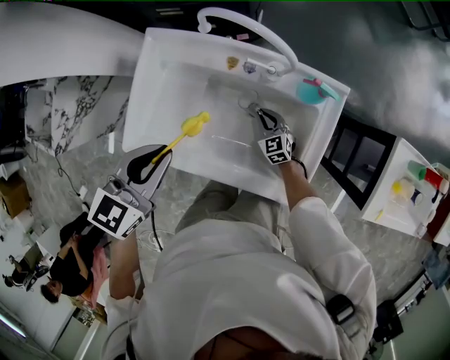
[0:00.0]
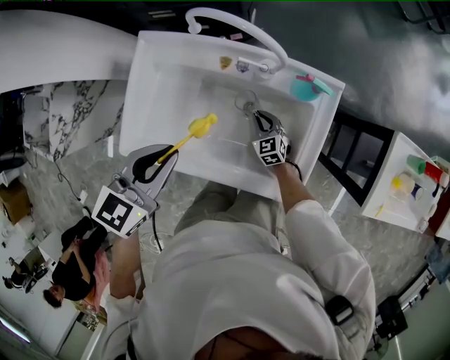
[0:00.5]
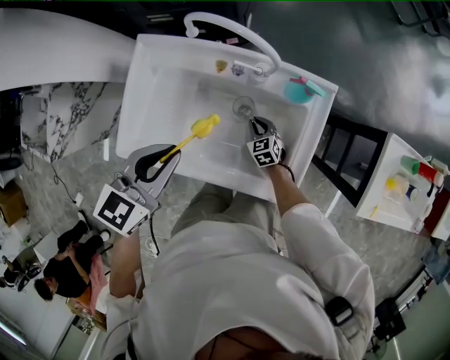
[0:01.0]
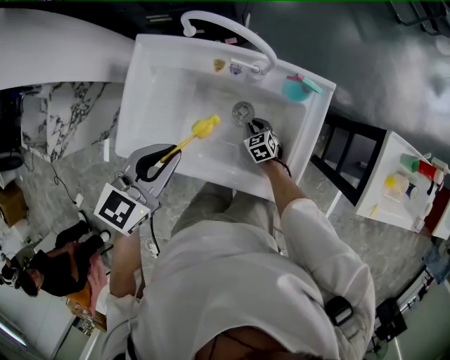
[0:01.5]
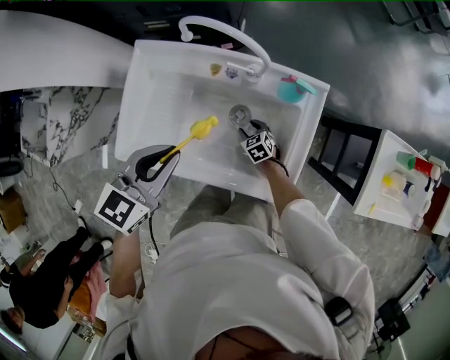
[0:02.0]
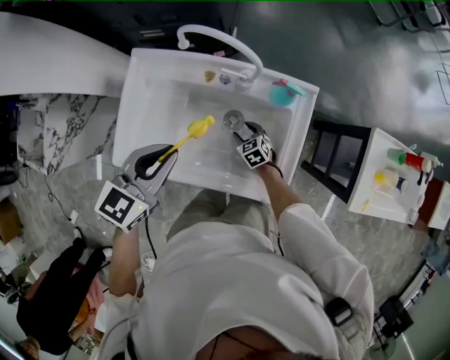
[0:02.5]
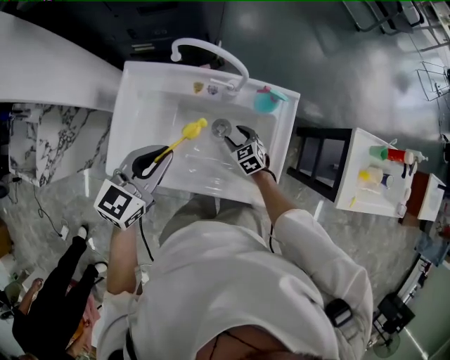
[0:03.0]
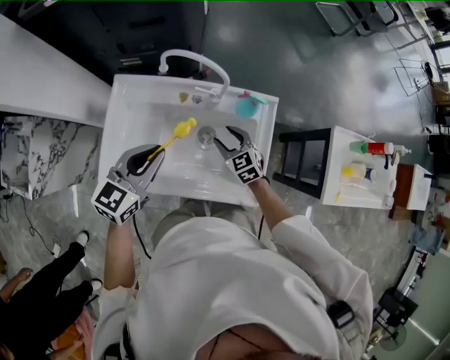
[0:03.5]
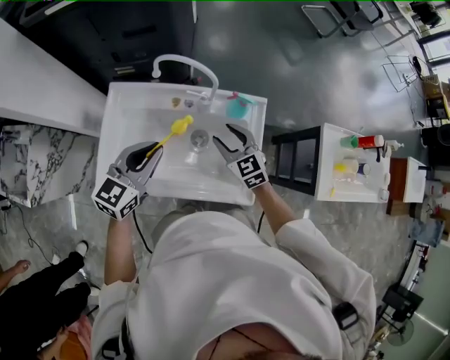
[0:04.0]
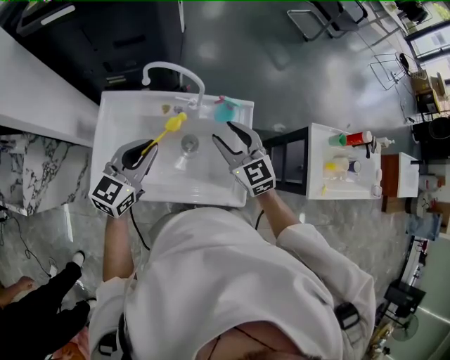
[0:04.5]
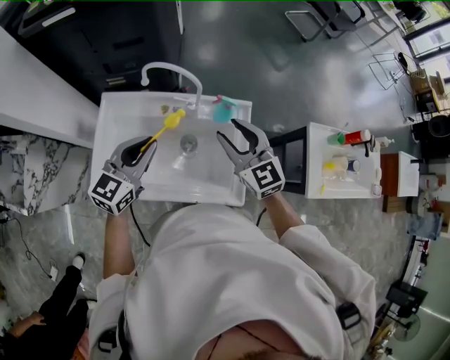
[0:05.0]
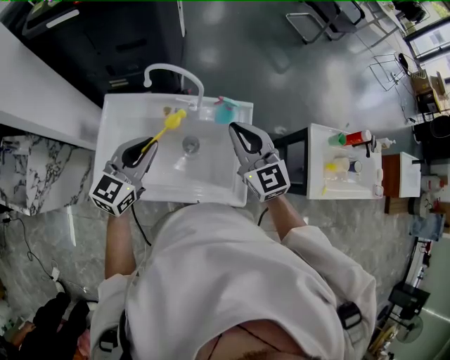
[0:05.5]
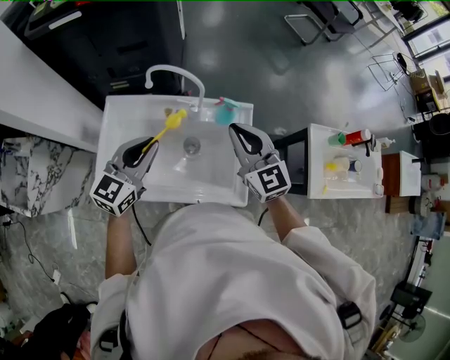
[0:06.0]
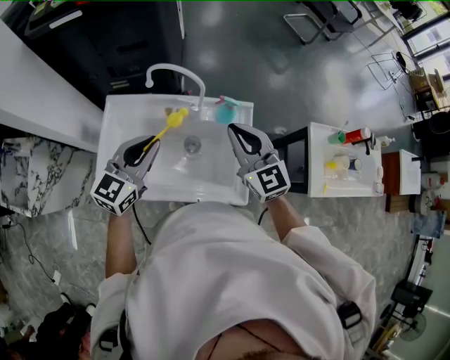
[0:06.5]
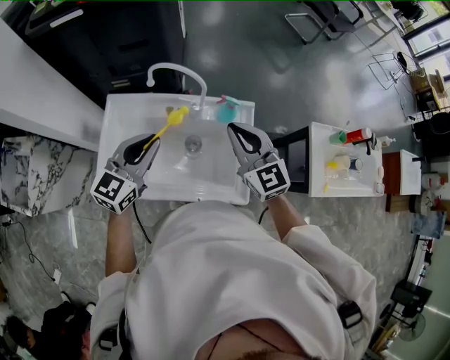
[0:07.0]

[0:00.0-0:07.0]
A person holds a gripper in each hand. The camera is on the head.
0:00.0 to 0:02.0: The right gripper ends up approximately 5 cm from where it was, changes its angle by about 20 degrees, and opens.
0:02.0 to 0:03.5: The right gripper travels upward by some 25 cm, and changes its angle by roughly 20 degrees.
0:03.5 to 0:05.0: The left gripper ends up some 5 cm from where it was. Meanwhile the right gripper heads upward, covering roughly 25 cm, and rotates about 20 degrees.
0:05.0 to 0:07.0: The right gripper closes its fingers.

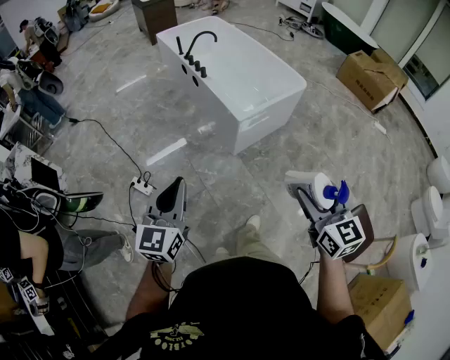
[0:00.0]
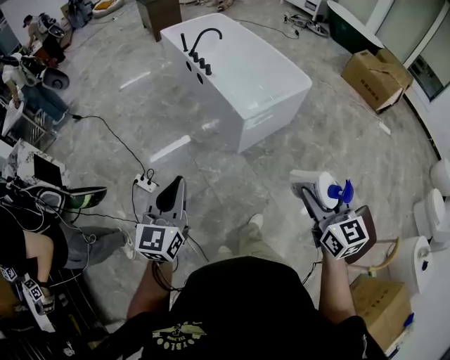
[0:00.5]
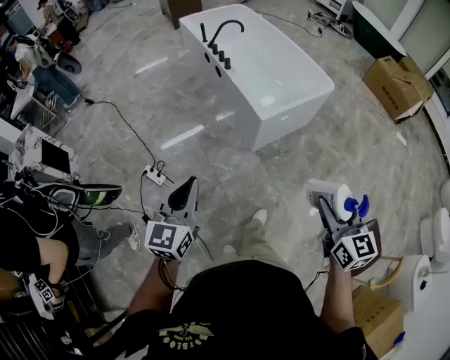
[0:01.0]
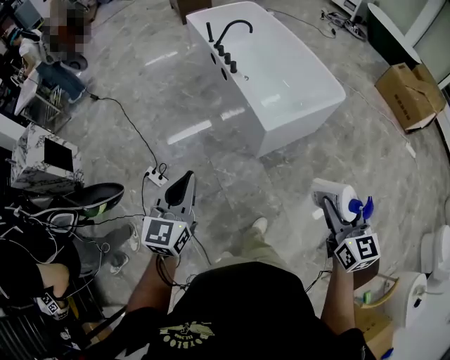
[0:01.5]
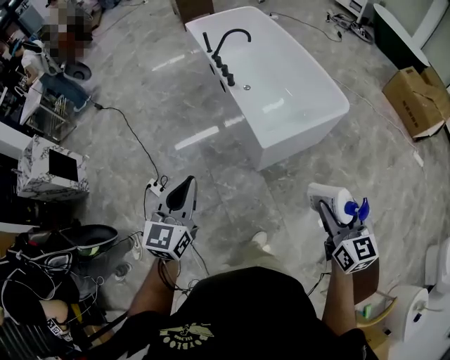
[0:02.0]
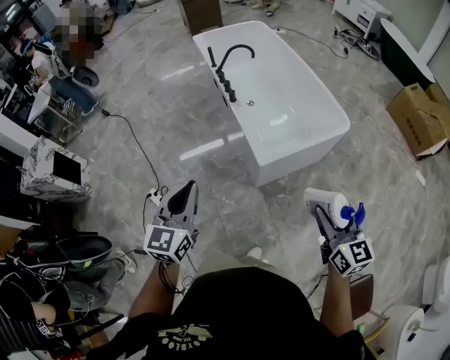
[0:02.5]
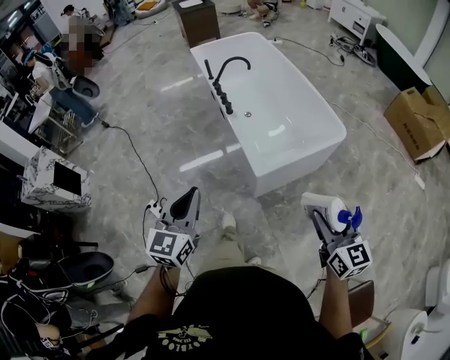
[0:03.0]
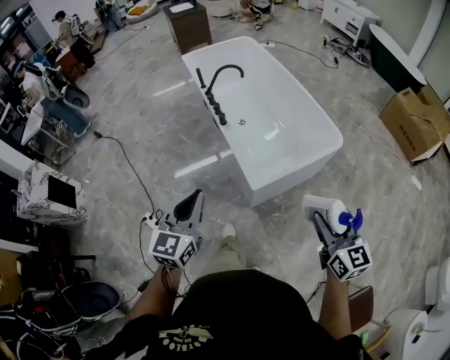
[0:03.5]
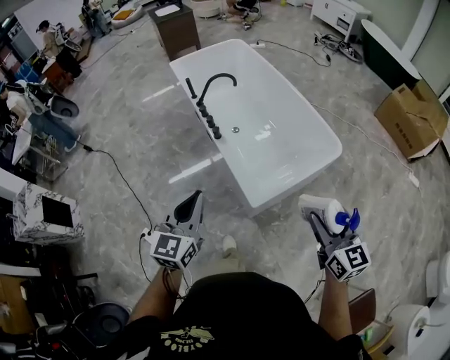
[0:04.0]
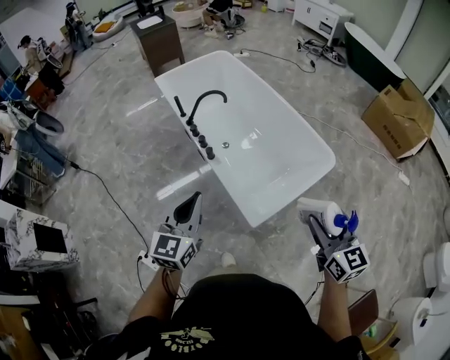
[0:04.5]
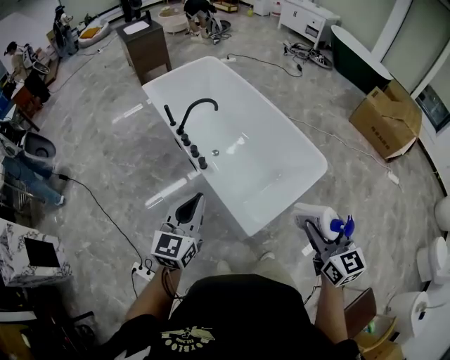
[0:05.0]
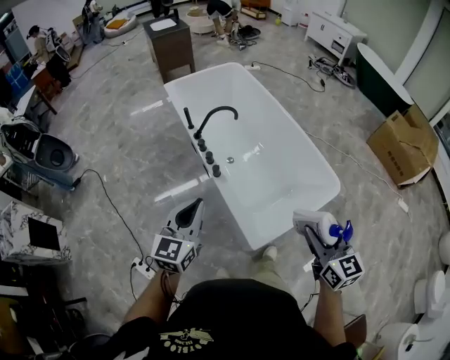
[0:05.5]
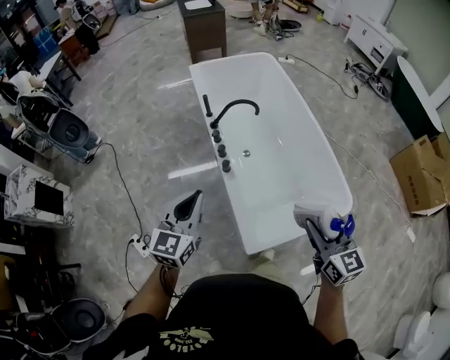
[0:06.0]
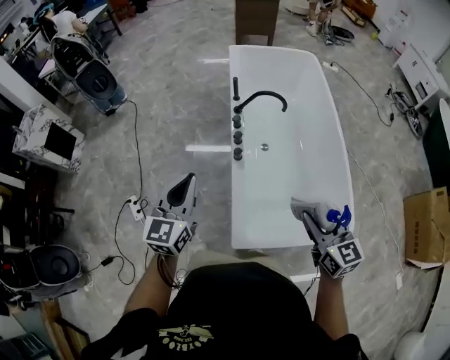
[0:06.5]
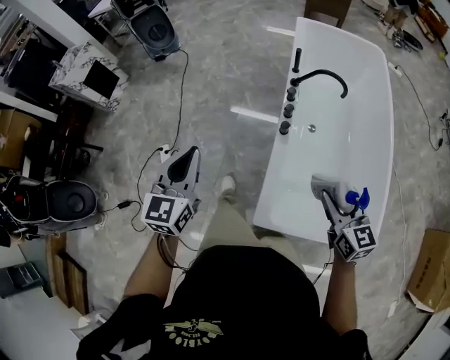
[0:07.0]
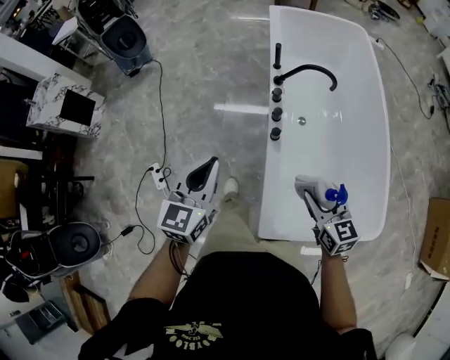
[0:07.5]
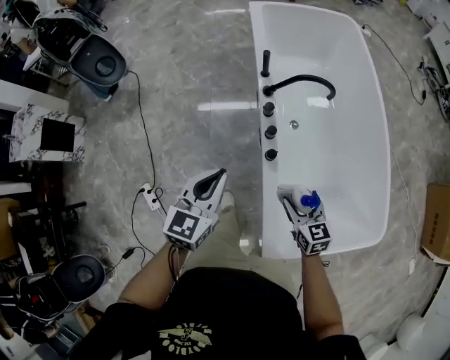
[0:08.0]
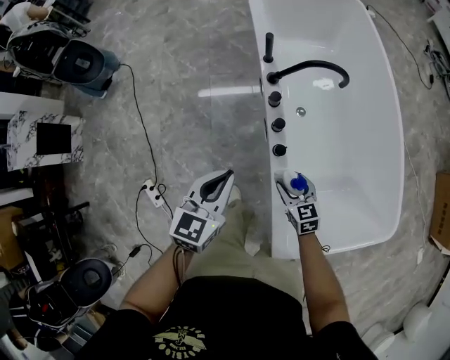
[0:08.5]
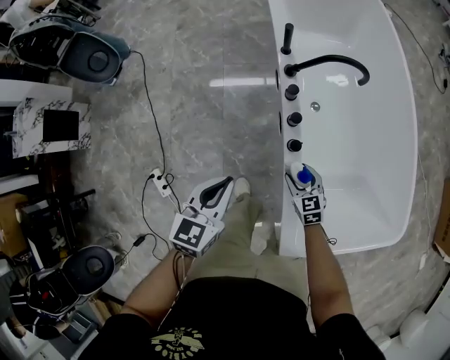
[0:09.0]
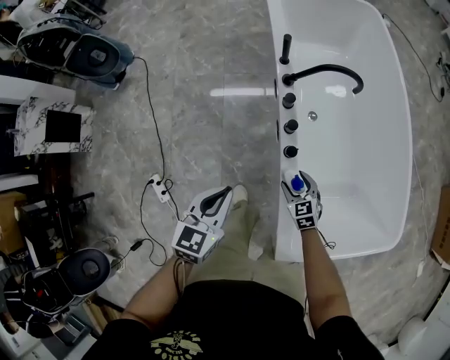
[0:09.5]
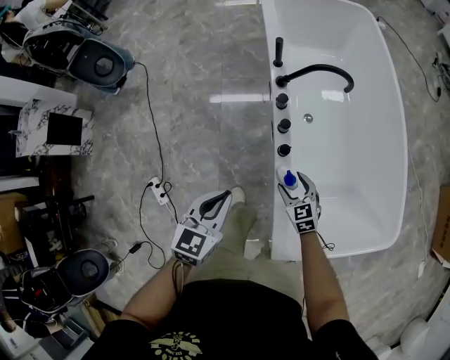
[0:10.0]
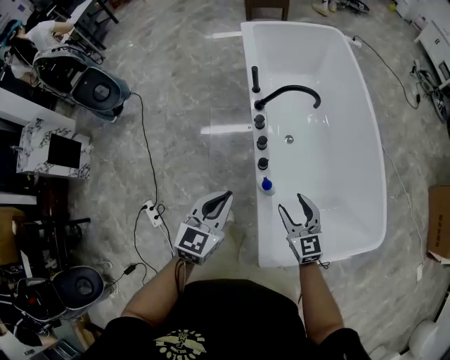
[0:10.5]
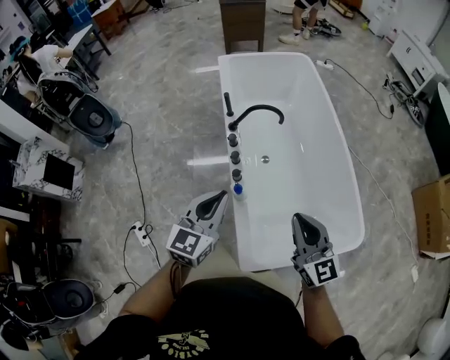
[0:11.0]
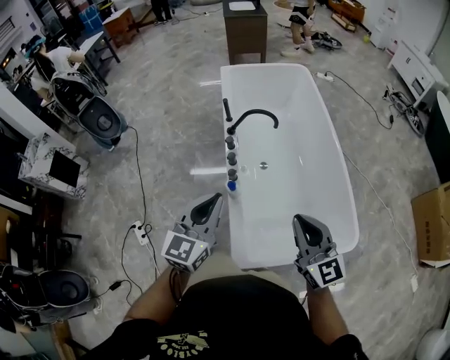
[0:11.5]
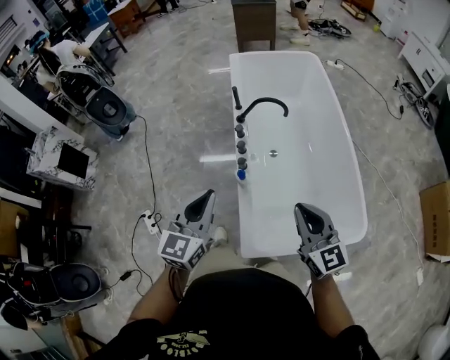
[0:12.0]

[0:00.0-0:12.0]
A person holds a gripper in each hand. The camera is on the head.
0:00.0 to 0:02.0: The two grippers go some 25 cm forward.
0:02.0 to 0:04.0: Both grippers travel together forward, roughly 25 cm.
0:04.0 to 0:06.0: Both grippers move forward, about 25 cm.
0:06.0 to 0:08.0: The right gripper moves downward, about 30 cm, and rotates roughly 30 degrees. Meanwhile the left gripper shifts by approximately 25 cm.
0:08.0 to 0:10.0: The left gripper shifts roughly 10 cm downward and backward. The right gripper heads downward, covering some 15 cm.
0:10.0 to 0:12.0: The left gripper is displaced upward, to the right and backward by about 30 cm, and swivels some 20 degrees, while the right gripper goes approximately 50 cm upward, to the right and backward, points its fingers about 30 degrees further upward, and closes its fingers.

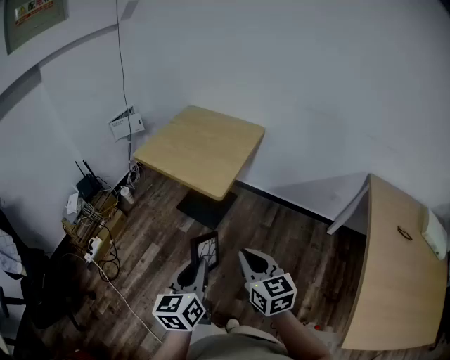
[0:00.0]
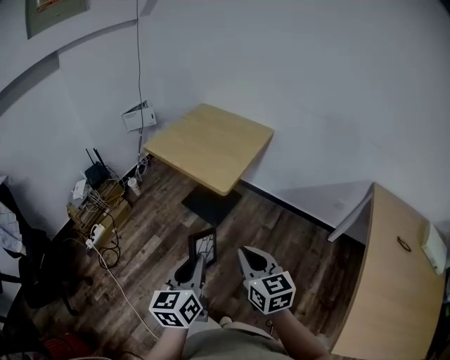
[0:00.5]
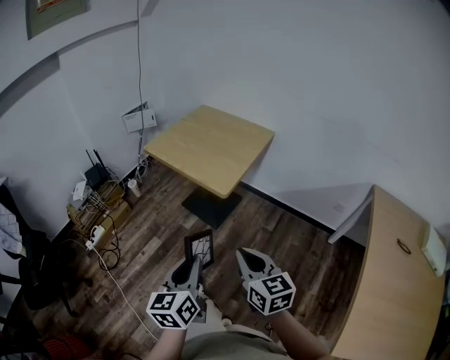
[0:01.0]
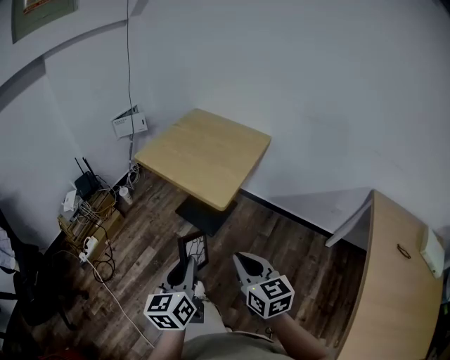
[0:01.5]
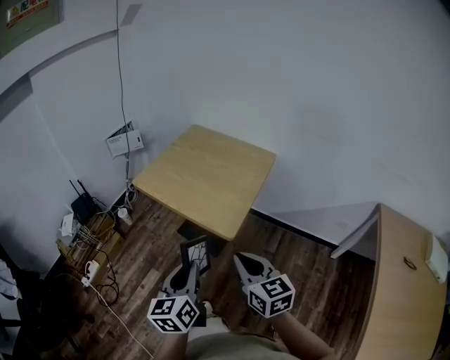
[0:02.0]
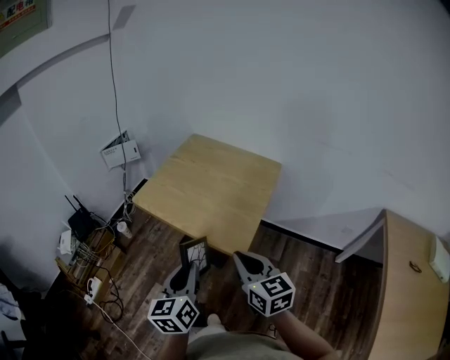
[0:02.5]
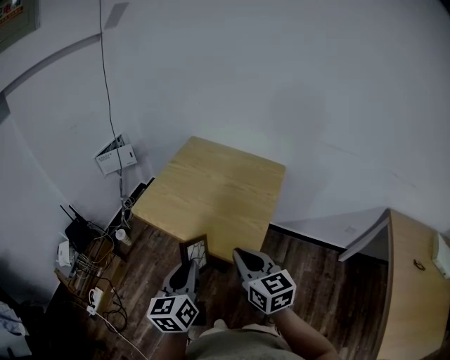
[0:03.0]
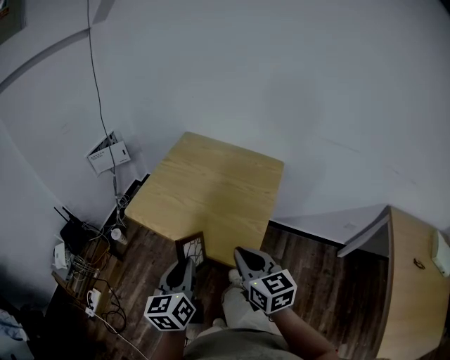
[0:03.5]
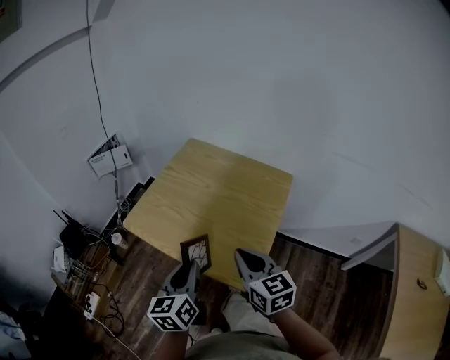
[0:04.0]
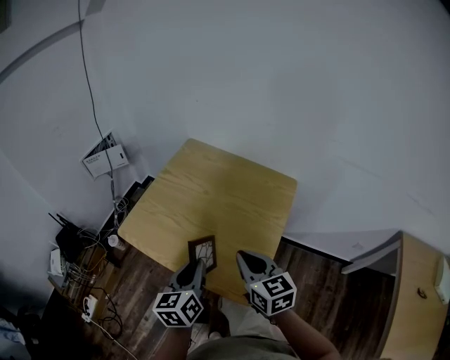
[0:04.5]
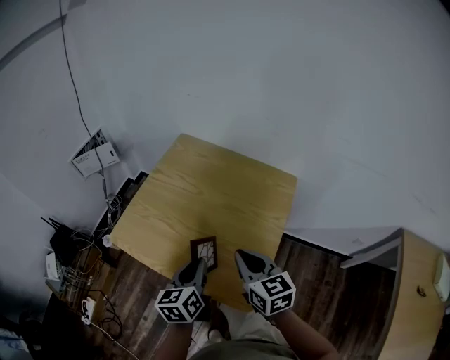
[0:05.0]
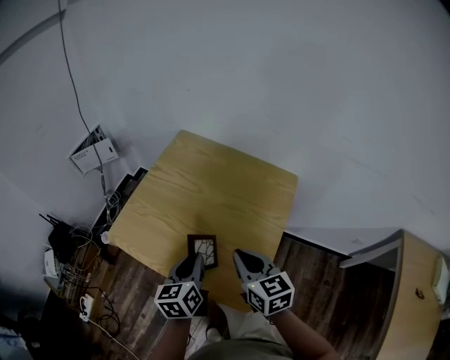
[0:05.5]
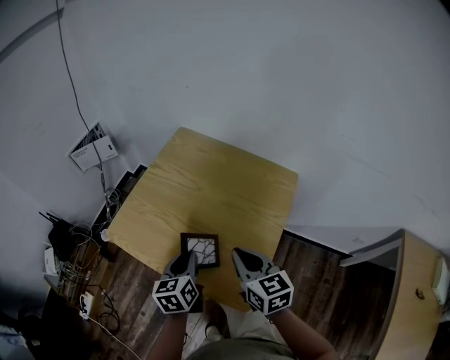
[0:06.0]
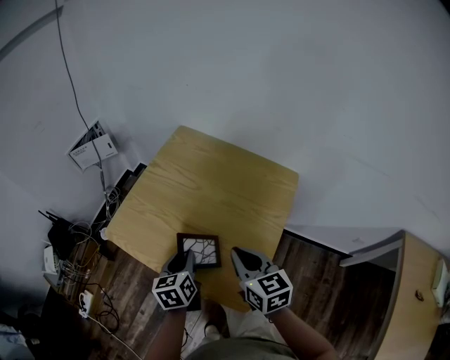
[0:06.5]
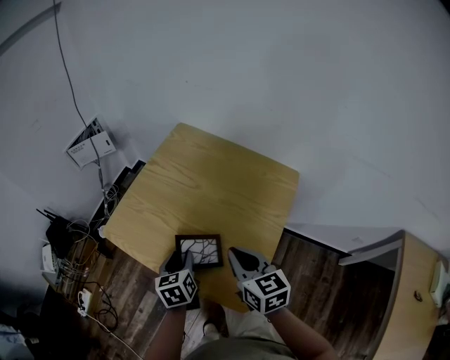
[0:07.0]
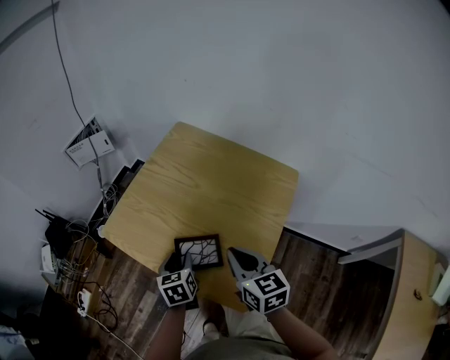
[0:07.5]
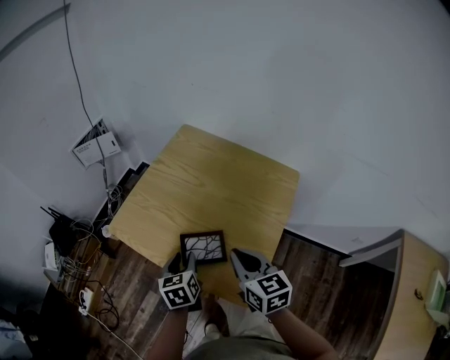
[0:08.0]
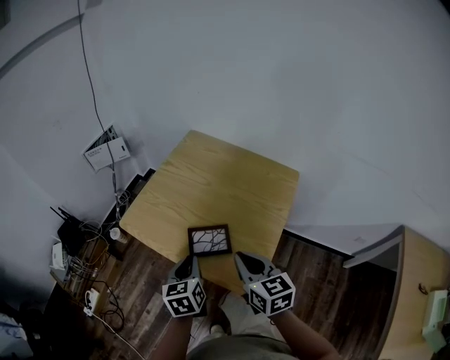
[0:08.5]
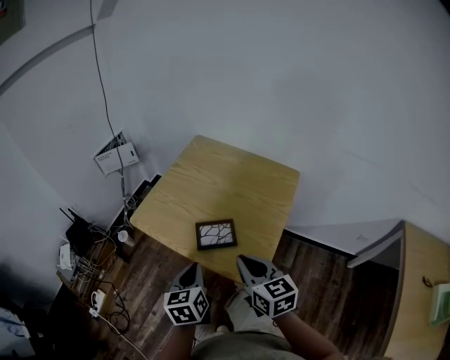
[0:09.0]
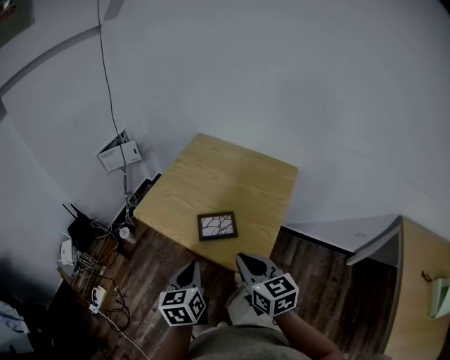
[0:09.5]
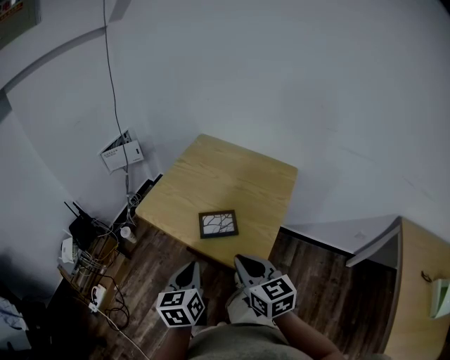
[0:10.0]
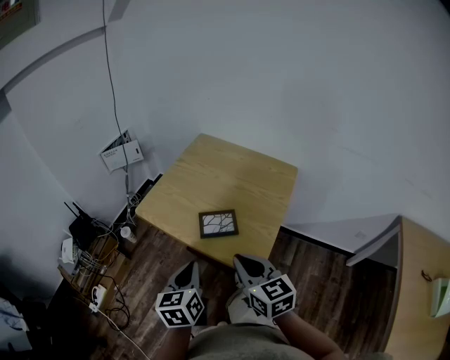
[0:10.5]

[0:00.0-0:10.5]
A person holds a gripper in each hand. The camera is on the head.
0:00.0 to 0:02.0: Both grippers move forward, approximately 20 cm.
0:02.0 to 0:04.0: The grippers both shift forward by approximately 25 cm.
0:04.0 to 0:06.5: The left gripper shifts roughly 20 cm downward and forward, while the right gripper is displaced forward and downward by approximately 10 cm.
0:06.5 to 0:08.5: The grippers both shift backward by roughly 5 cm.
0:08.5 to 0:10.5: The left gripper heads backward and upward, covering some 15 cm; the right gripper shifts approximately 10 cm backward and to the left.
